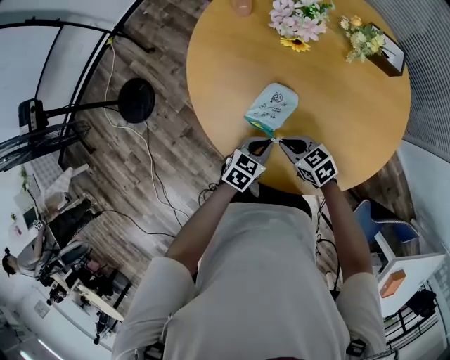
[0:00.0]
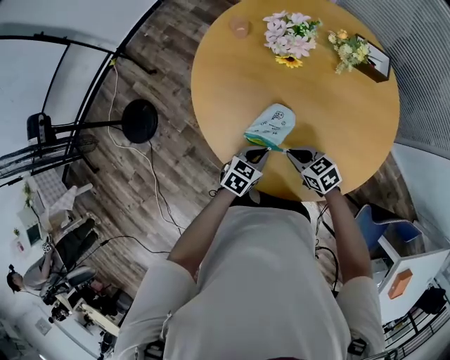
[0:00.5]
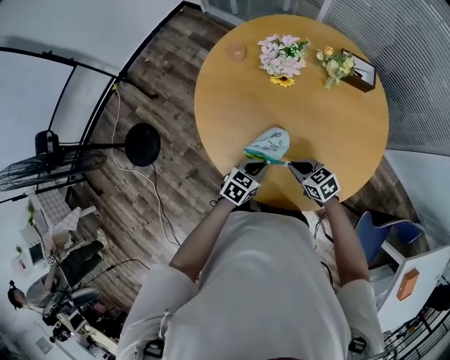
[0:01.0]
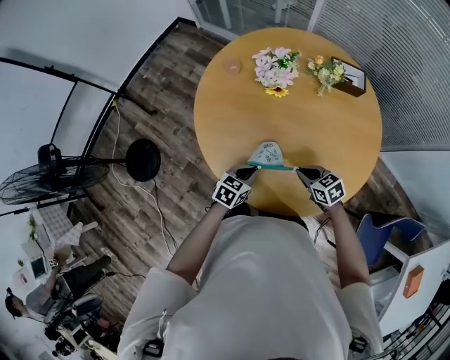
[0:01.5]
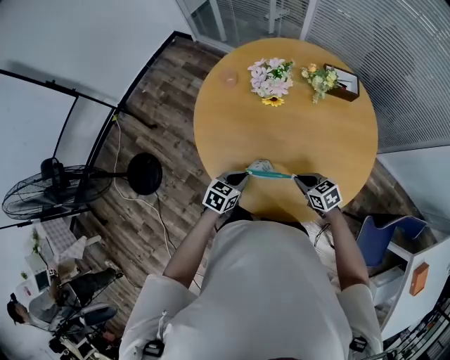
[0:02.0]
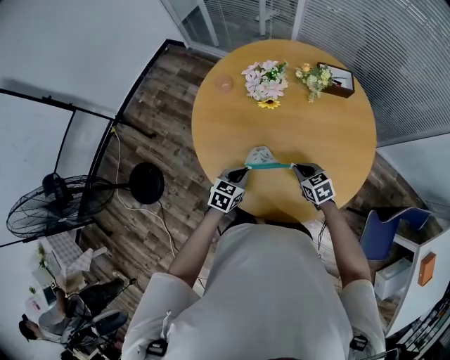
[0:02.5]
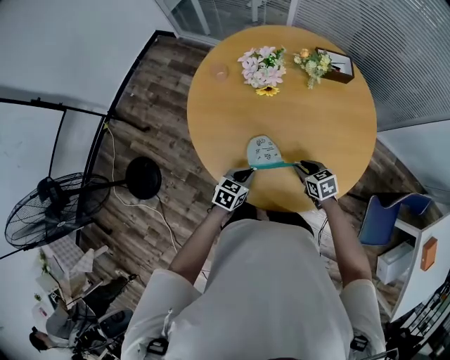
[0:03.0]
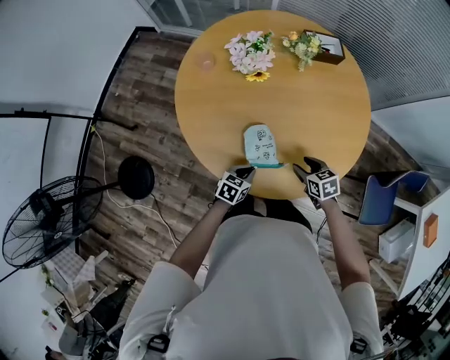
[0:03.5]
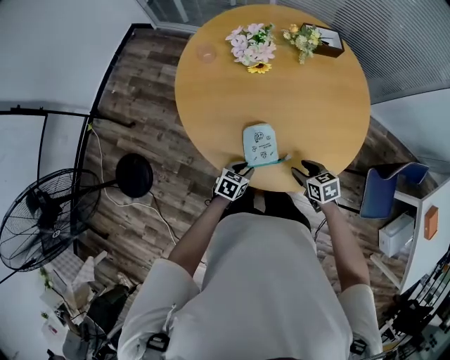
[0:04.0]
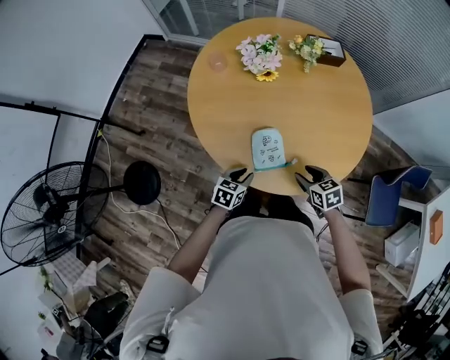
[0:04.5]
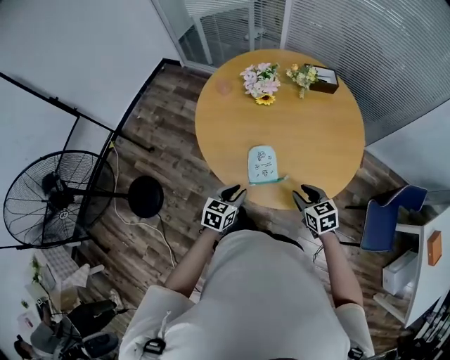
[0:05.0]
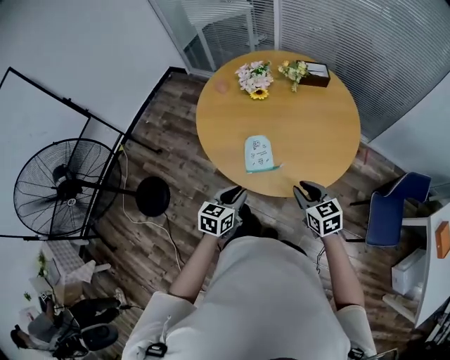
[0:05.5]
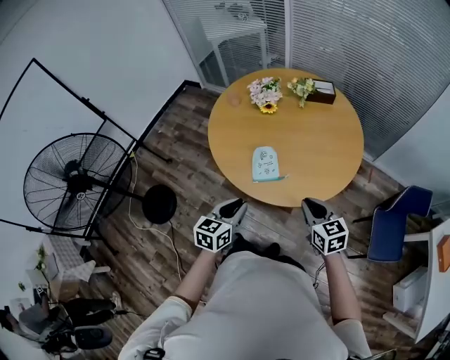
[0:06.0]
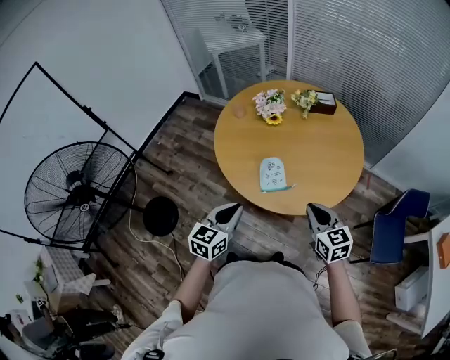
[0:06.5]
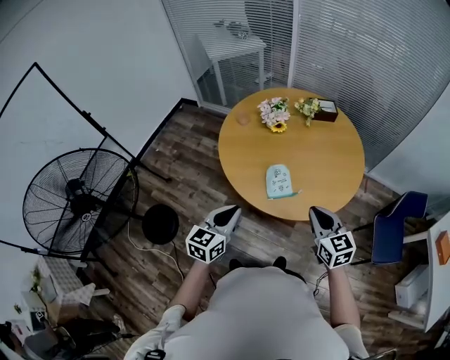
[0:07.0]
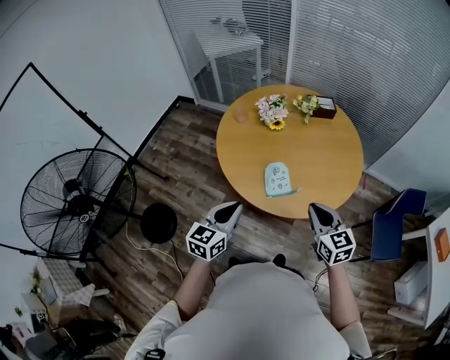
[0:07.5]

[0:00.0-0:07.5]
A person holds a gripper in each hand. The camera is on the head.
0:00.0 to 0:02.0: The left gripper shifts approximately 10 cm upward and to the left; the right gripper heads to the right and upward, covering roughly 10 cm.
0:02.0 to 0:04.0: The left gripper shifts approximately 15 cm downward and backward, and opens up. The right gripper moves backward, some 10 cm, swivels approximately 20 degrees, and opens up.
0:04.0 to 0:05.5: The grippers both shift upward and backward by about 25 cm. The left gripper rotates approximately 30 degrees, while the right gripper turns by some 30 degrees, and closes its fingers.
0:05.5 to 0:07.5: The grippers both shift upward and to the left by some 15 cm. The right gripper closes up.

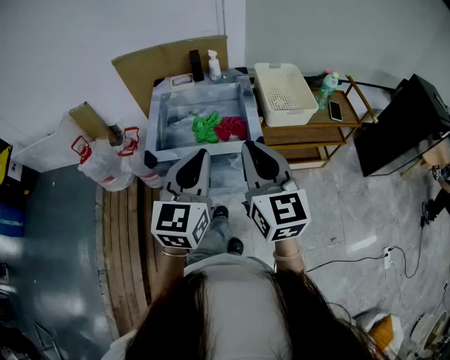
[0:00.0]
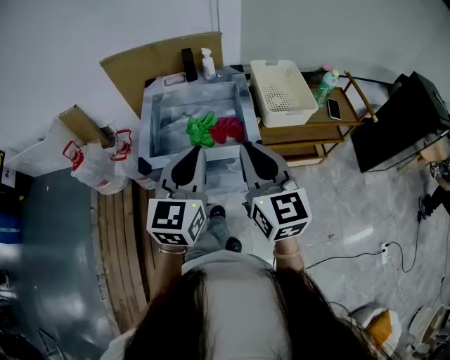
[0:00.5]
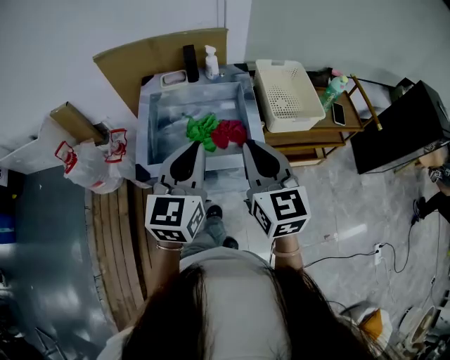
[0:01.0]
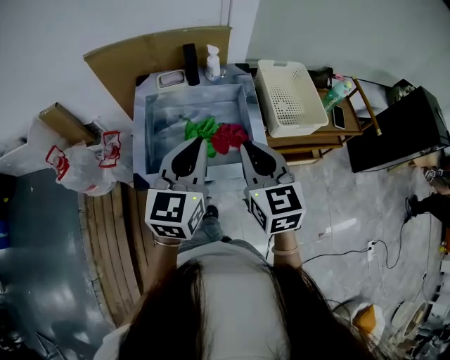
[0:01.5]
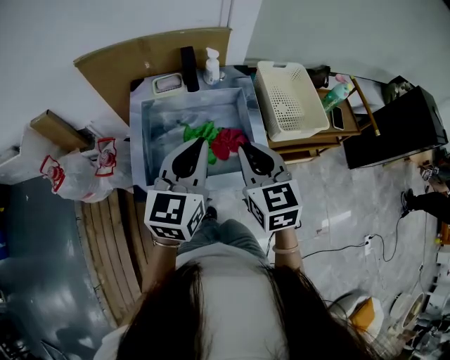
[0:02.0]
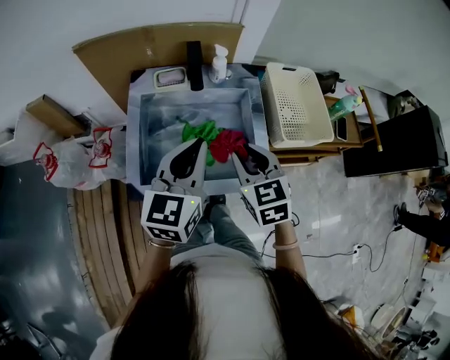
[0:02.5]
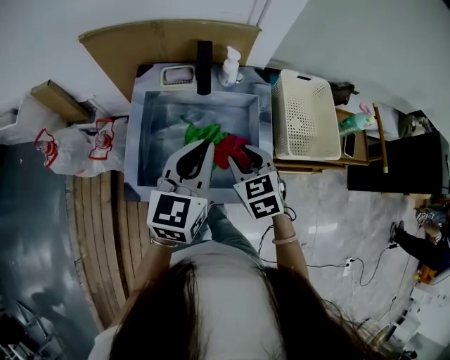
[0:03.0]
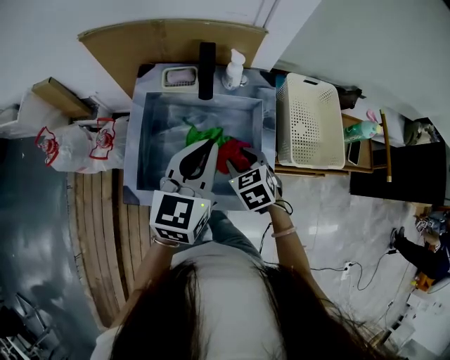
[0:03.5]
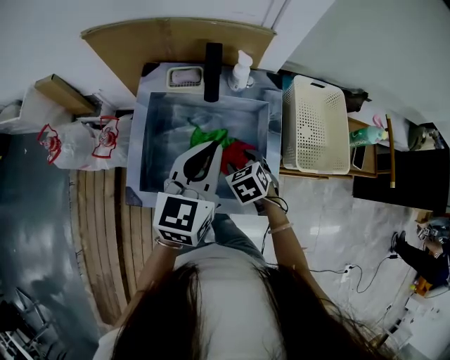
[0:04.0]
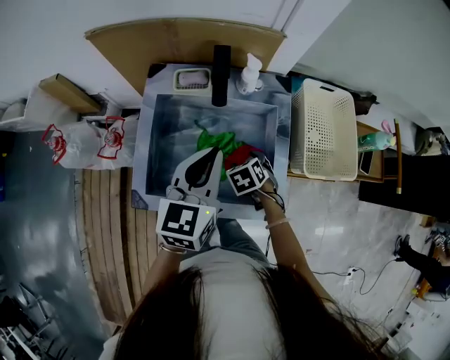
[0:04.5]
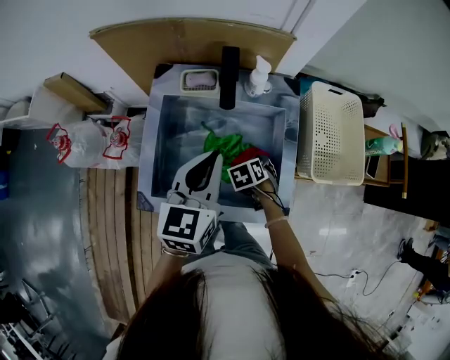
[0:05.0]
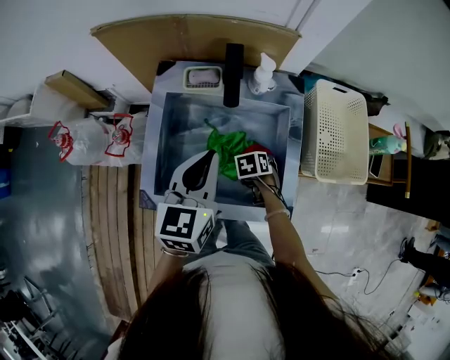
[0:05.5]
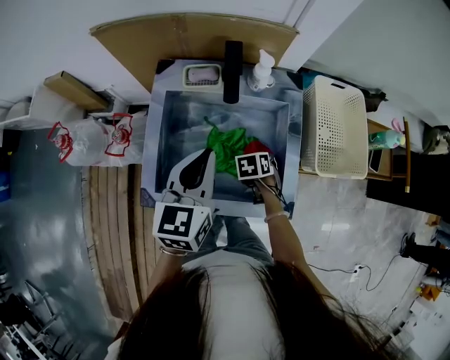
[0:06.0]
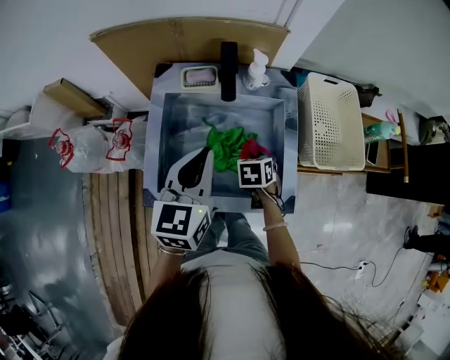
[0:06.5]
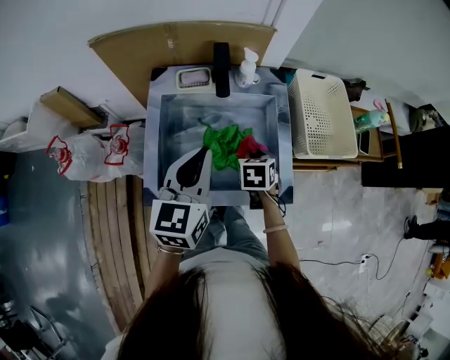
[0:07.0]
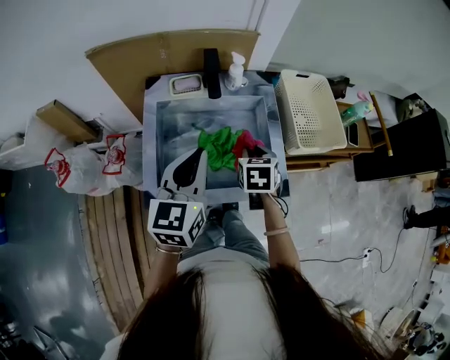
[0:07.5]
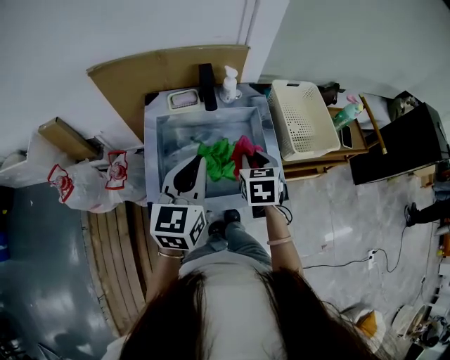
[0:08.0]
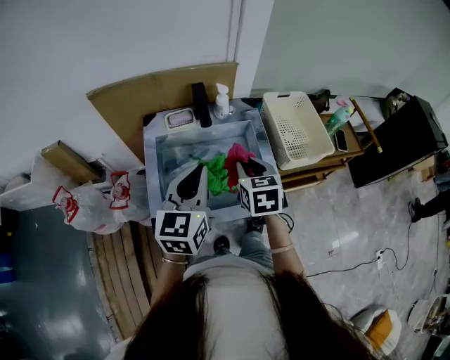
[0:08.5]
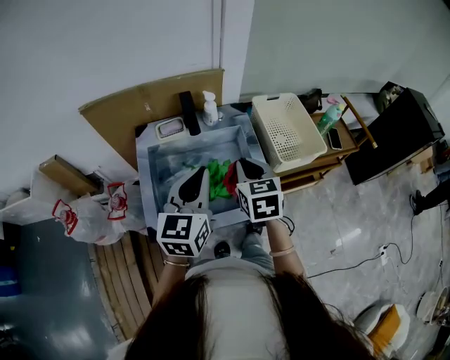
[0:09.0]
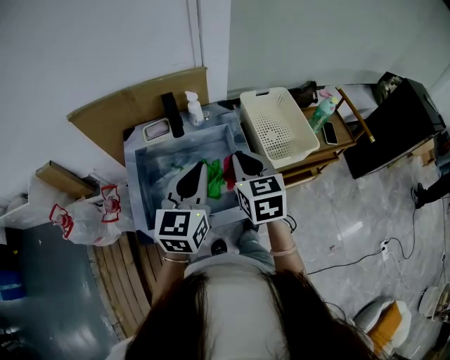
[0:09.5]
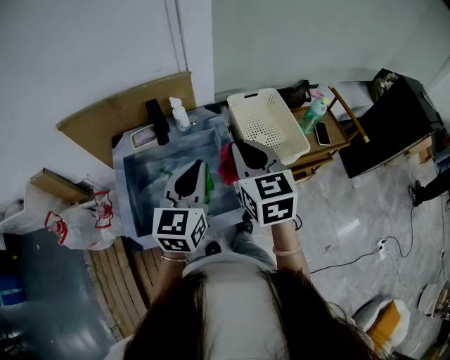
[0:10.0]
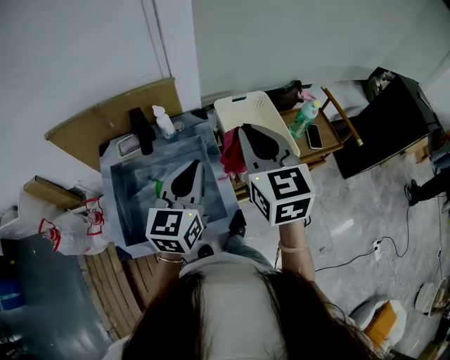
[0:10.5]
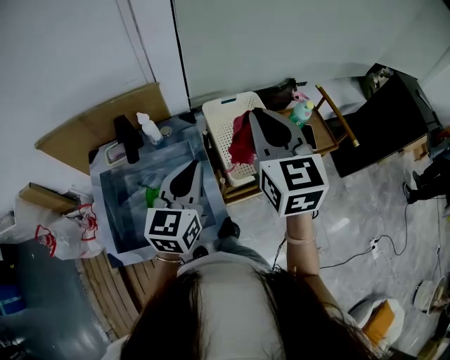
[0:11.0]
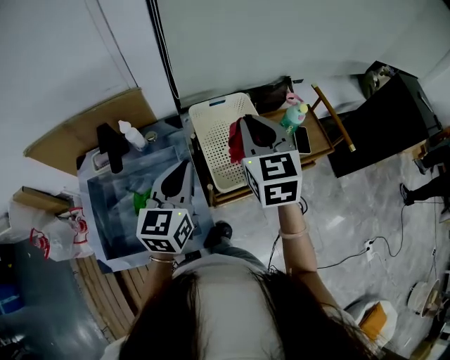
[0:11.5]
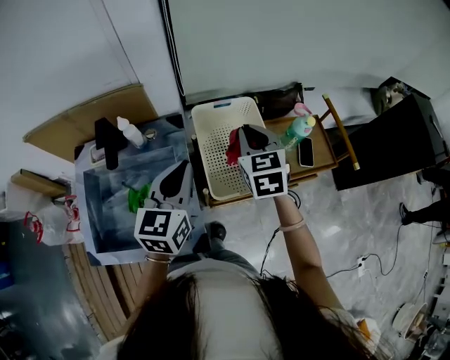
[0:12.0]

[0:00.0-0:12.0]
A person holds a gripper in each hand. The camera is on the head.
0:00.0 to 0:02.0: The left gripper goes about 25 cm forward. The right gripper travels forward and downward by about 25 cm, and rotates approximately 20 degrees.
0:02.0 to 0:04.0: The right gripper is displaced downward and forward by some 25 cm, tips its fingers downward by some 40 degrees, and opens its fingers. Meanwhile the left gripper moves forward and downward, roughly 10 cm.
0:04.0 to 0:06.0: The left gripper moves approximately 5 cm. The right gripper is displaced downward by about 10 cm, swivels approximately 30 degrees, and closes up.
0:06.0 to 0:08.0: The right gripper moves upward, approximately 25 cm, and angles its fingers upward, by about 30 degrees, while the left gripper ends up about 10 cm from where it was.
0:08.0 to 0:10.0: The right gripper goes some 20 cm upward and to the right, and turns by roughly 20 degrees, while the left gripper heads to the right, covering roughly 15 cm.
0:10.0 to 0:12.0: The right gripper travels forward, to the right and downward by roughly 25 cm. Meanwhile the left gripper moves forward and to the right, some 20 cm.

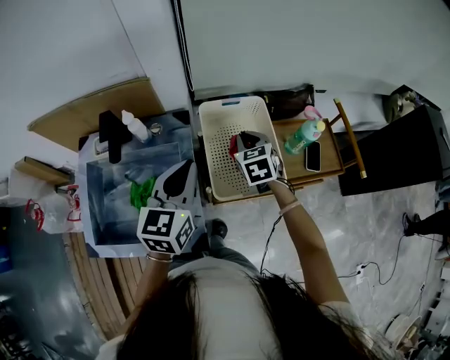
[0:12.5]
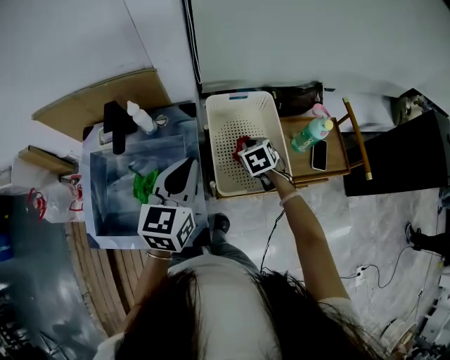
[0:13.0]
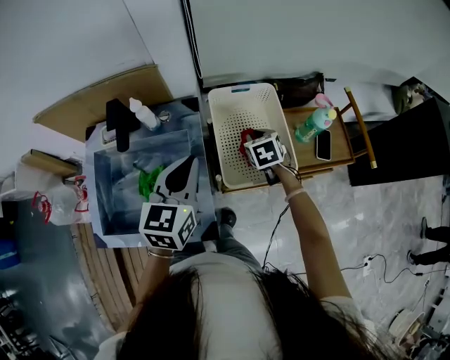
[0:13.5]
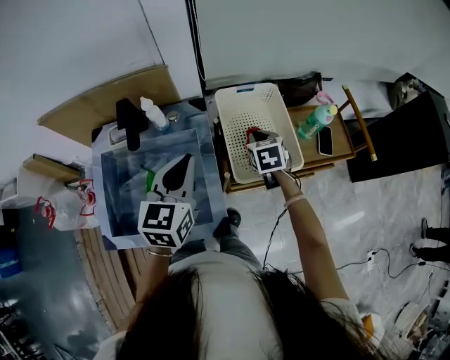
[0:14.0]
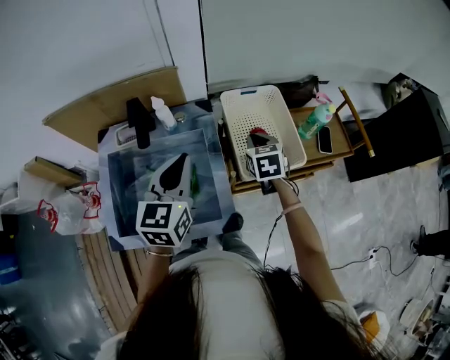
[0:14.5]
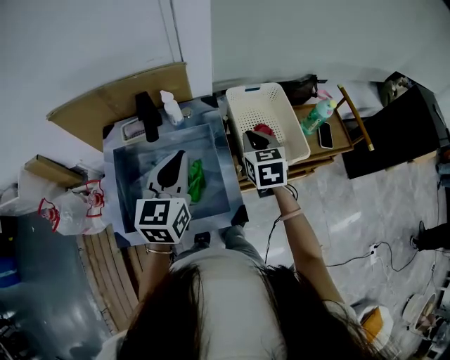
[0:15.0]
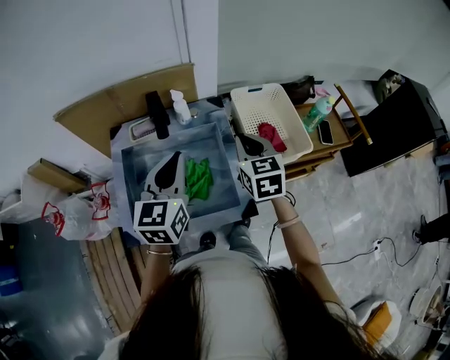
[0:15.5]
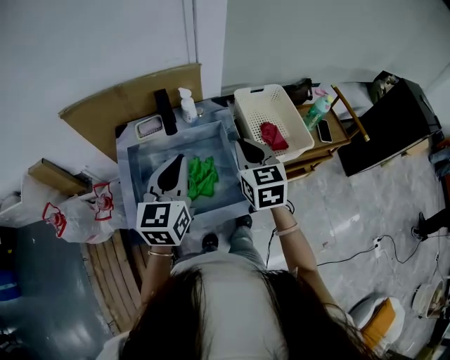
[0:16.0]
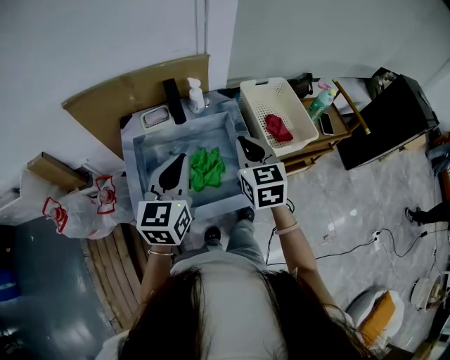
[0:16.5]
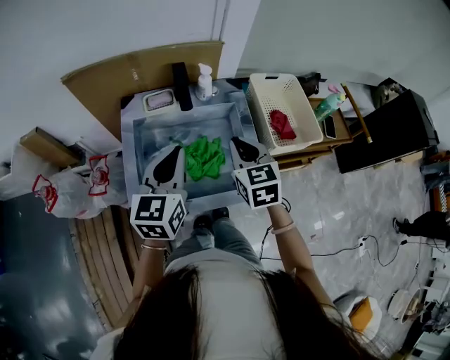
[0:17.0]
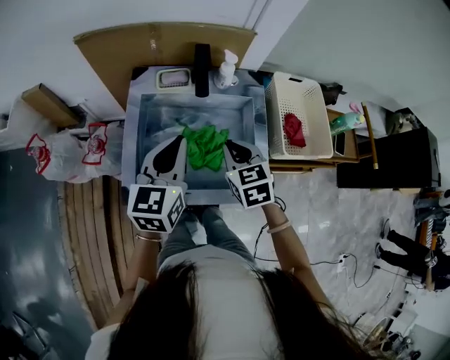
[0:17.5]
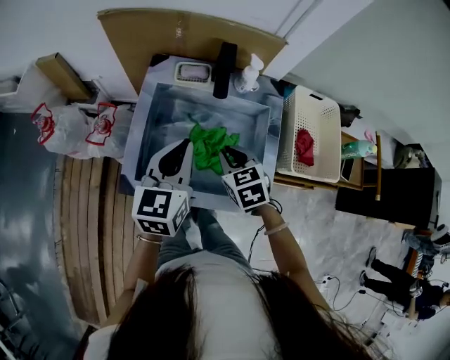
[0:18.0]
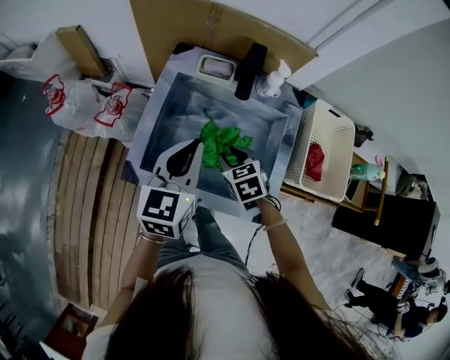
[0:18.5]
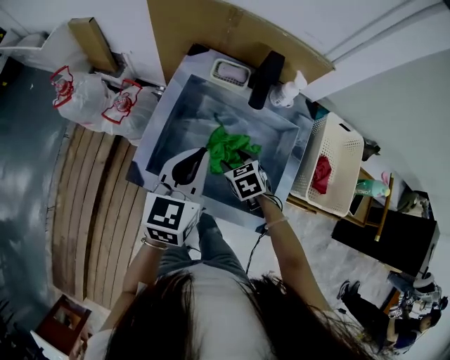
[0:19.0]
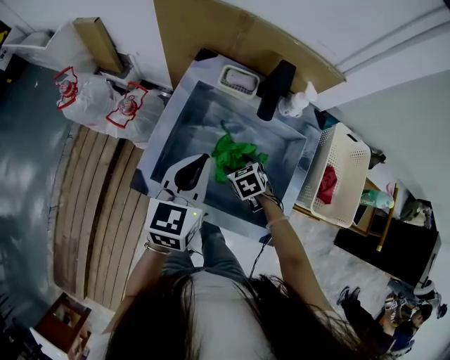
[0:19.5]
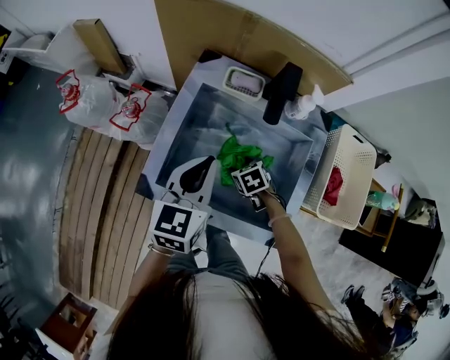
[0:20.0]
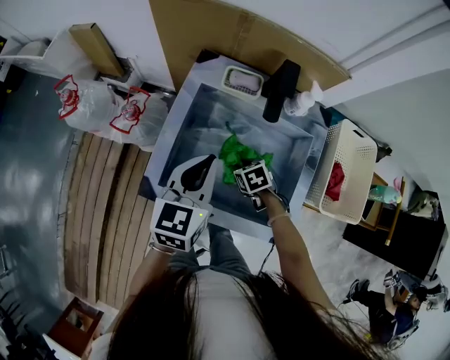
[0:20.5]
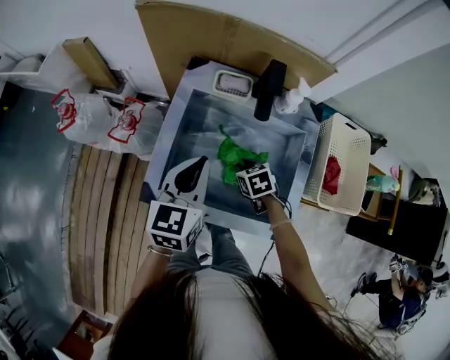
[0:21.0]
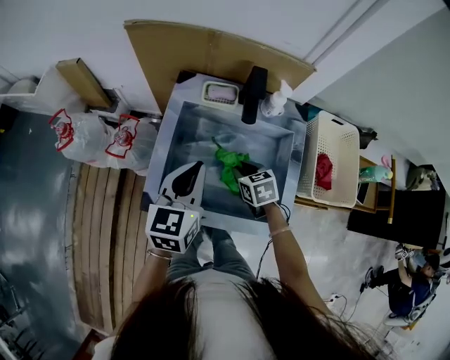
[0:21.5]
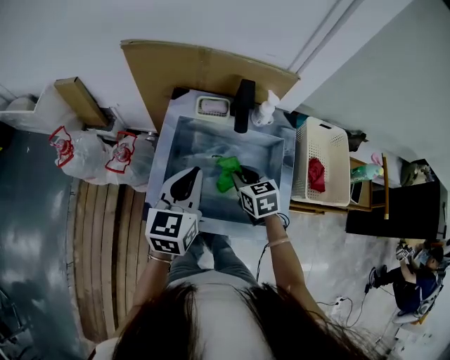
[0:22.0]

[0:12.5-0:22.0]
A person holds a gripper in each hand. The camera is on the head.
0:12.5 to 0:14.5: The right gripper shifts roughly 10 cm backward and to the left, and goes downward and returns, approximately 10 cm each way. The left gripper heads to the left, covering about 10 cm.
0:14.5 to 0:16.5: The right gripper travels to the left, backward and upward by about 25 cm, and turns by approximately 20 degrees. The left gripper shifts roughly 15 cm to the left and backward.
0:16.5 to 0:18.0: The left gripper moves downward, about 5 cm, and turns by approximately 20 degrees; the right gripper moves downward, approximately 15 cm, and rotates approximately 40 degrees.
0:18.0 to 0:20.0: The right gripper travels downward by approximately 20 cm, changes its angle by about 30 degrees, and opens its fingers. Meanwhile the left gripper shifts by approximately 5 cm.
0:20.0 to 0:22.0: The right gripper is displaced upward by approximately 15 cm, swivels roughly 30 degrees, and closes its fingers.
